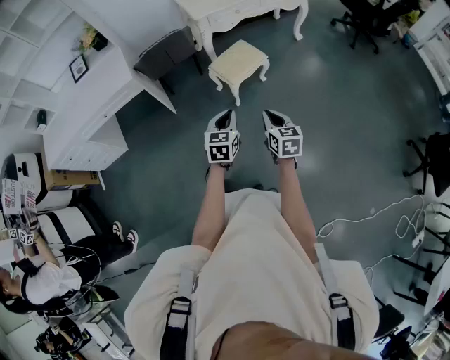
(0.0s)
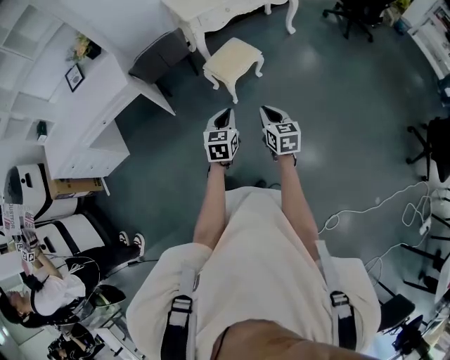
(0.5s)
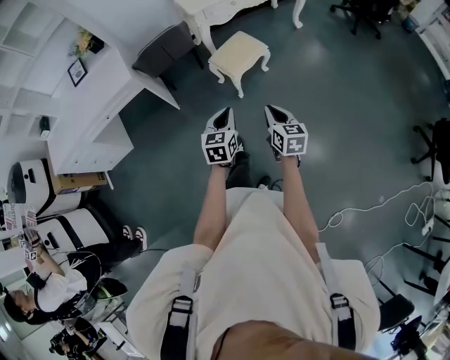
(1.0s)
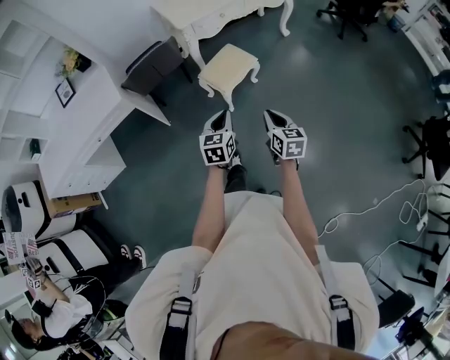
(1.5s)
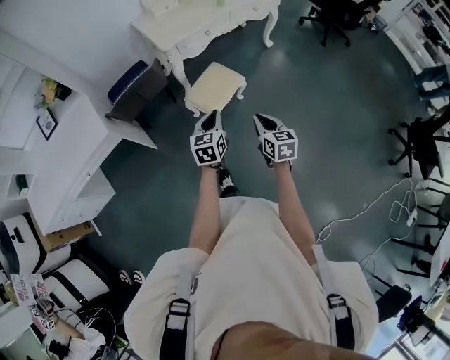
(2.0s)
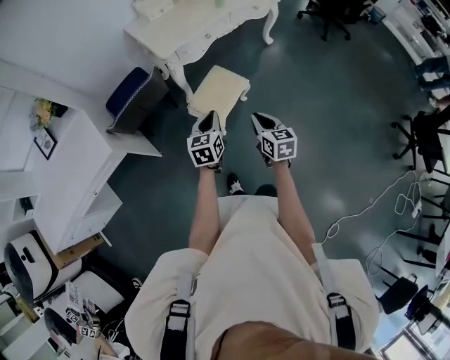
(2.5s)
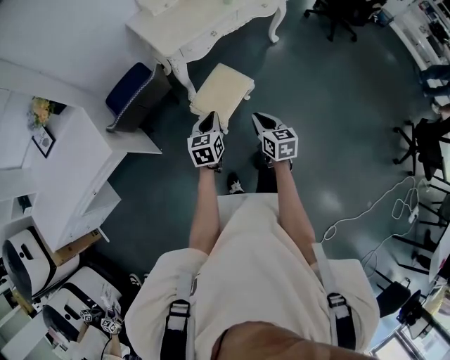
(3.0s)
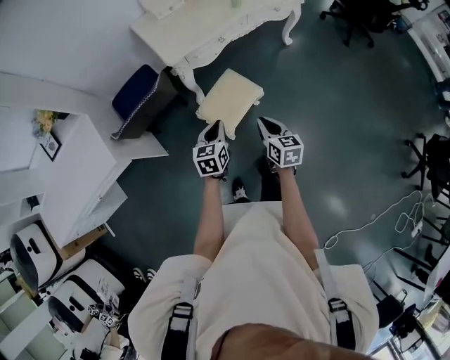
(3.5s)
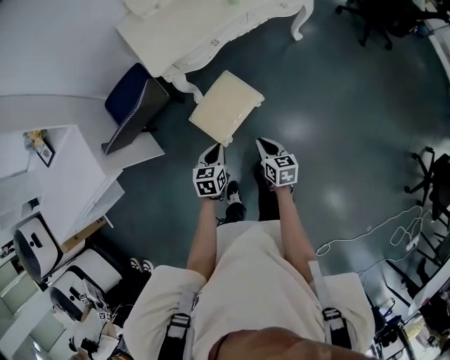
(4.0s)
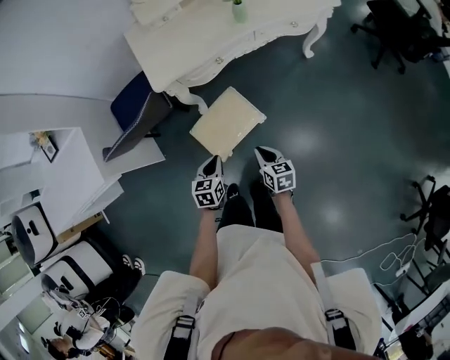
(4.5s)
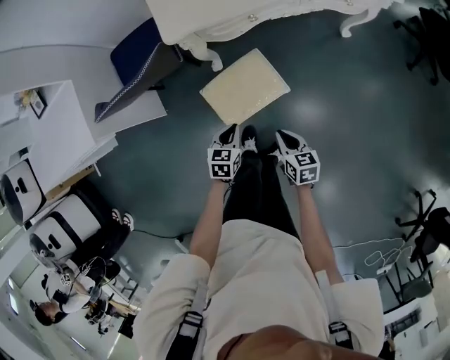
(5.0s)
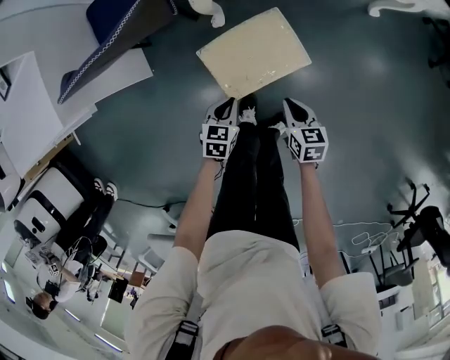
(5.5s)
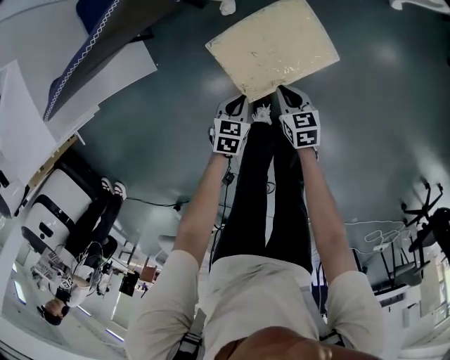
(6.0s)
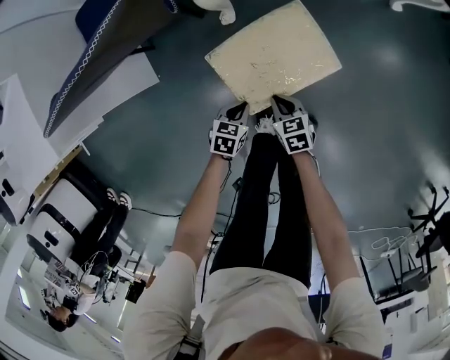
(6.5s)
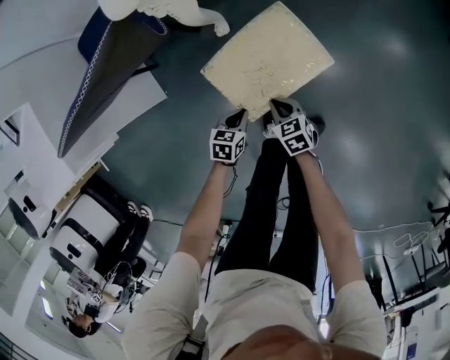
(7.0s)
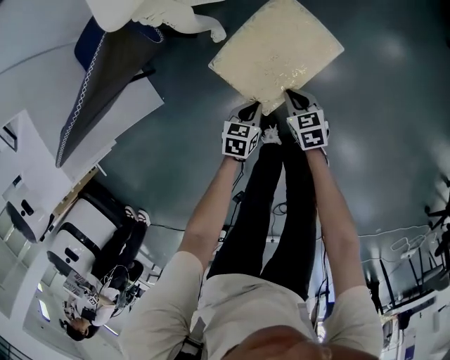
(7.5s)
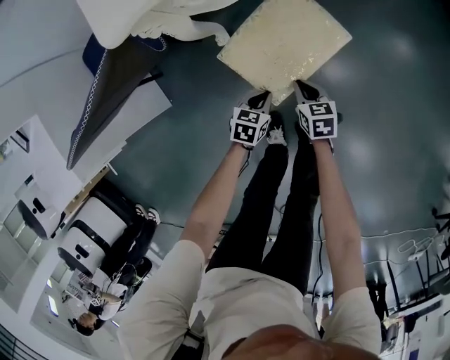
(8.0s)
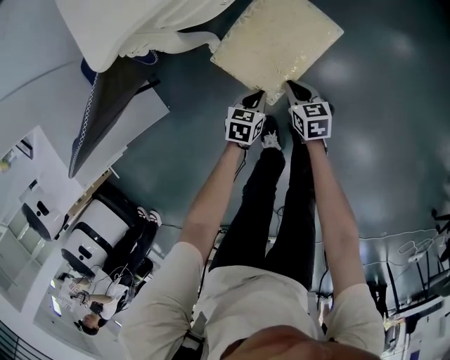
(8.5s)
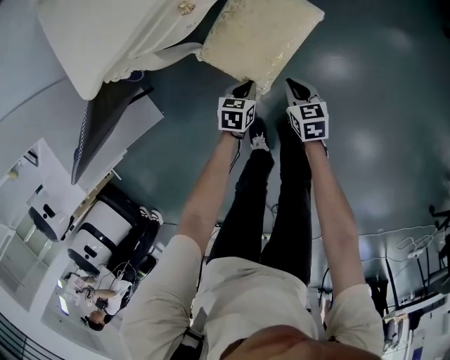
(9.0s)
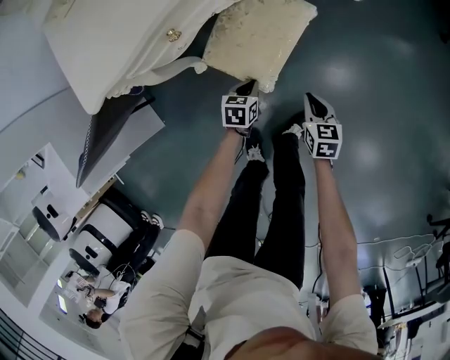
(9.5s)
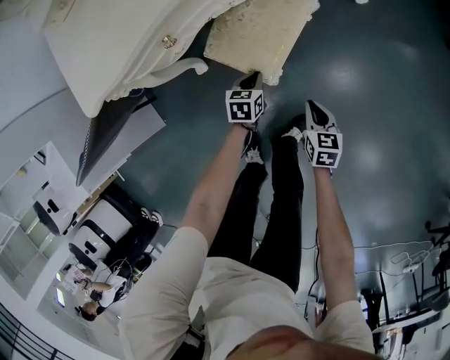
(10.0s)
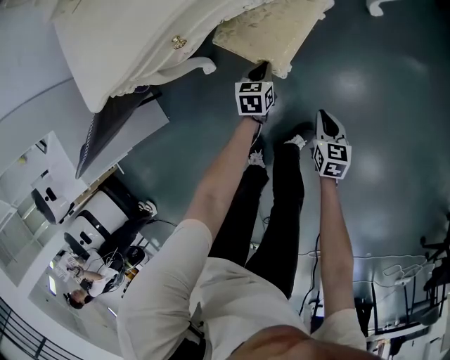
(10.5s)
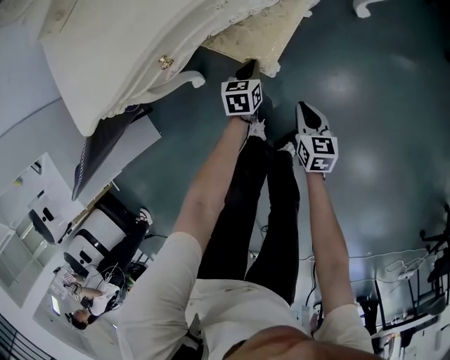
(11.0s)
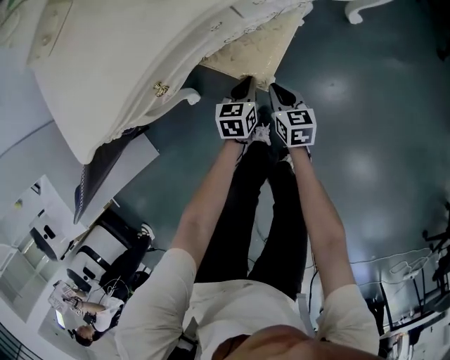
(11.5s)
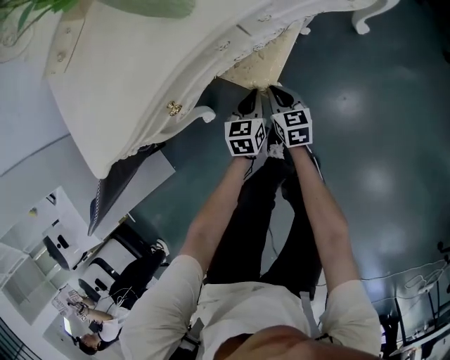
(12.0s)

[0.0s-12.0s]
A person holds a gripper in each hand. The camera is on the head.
0.0s to 2.0s: The grippers both shift forward by about 20 cm.
2.0s to 4.0s: The grippers both shift forward and downward by some 30 cm. The left gripper swivels some 20 degrees.
4.0s to 6.0s: Both grippers move downward, about 35 cm. The right gripper rotates some 30 degrees.
6.0s to 8.0s: The grippers both shift forward, to the right and downward by roughly 15 cm.
8.0s to 10.0s: The right gripper goes approximately 25 cm to the right; the left gripper travels forward and to the right by about 25 cm.
10.0s to 12.0s: The left gripper goes approximately 15 cm forward, while the right gripper heads forward and to the left, covering roughly 25 cm.

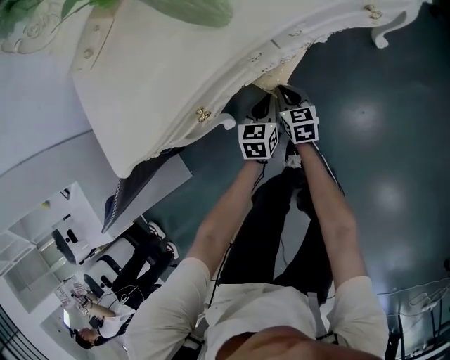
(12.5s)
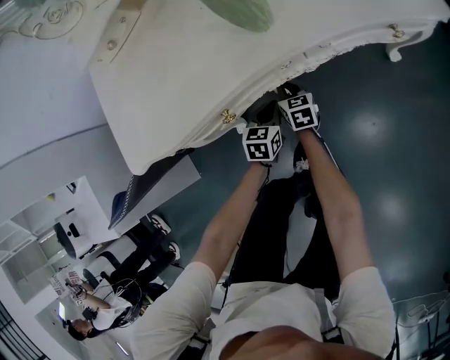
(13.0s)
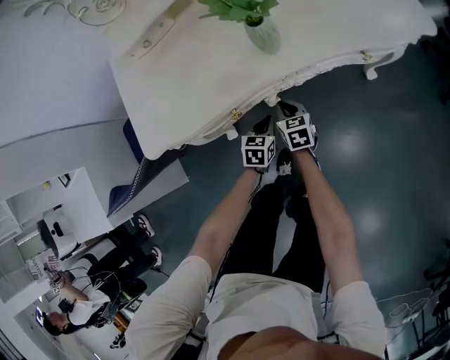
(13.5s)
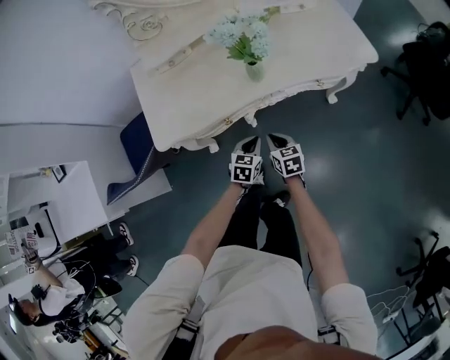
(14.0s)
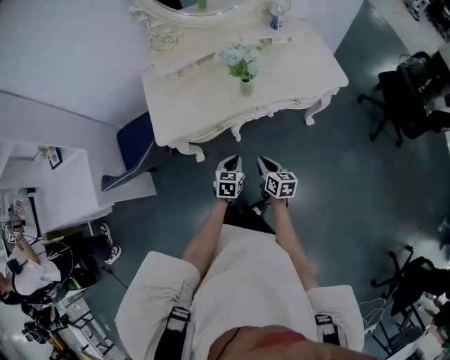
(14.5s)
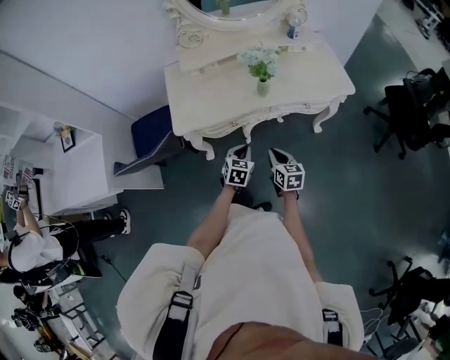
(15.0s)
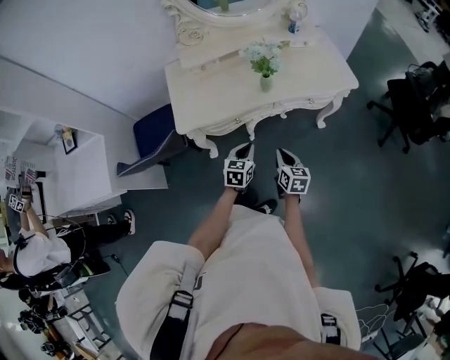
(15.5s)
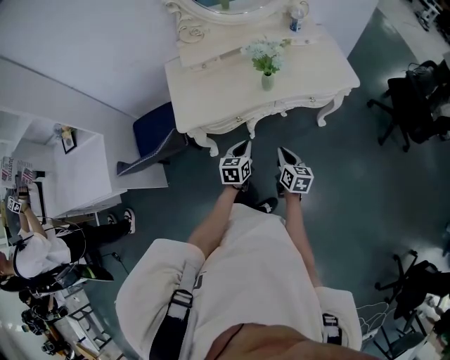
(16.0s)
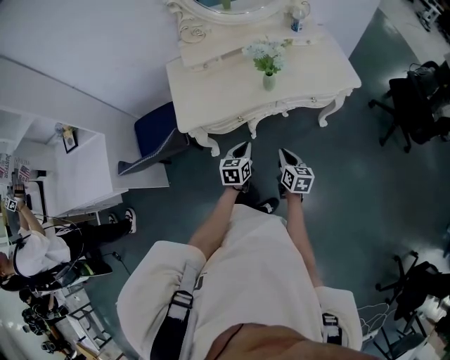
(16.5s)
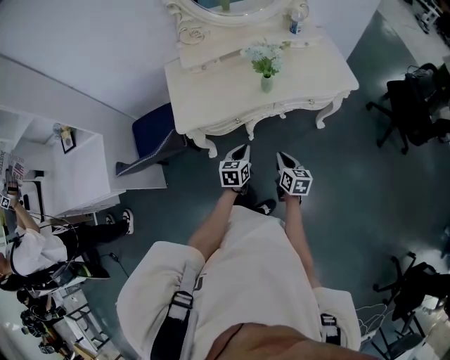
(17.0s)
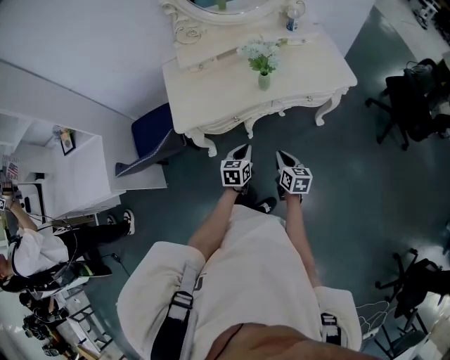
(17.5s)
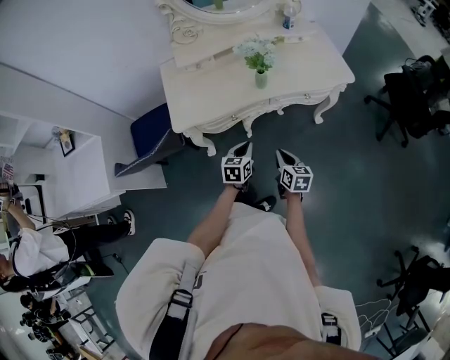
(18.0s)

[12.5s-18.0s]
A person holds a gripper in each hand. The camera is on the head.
12.5s to 14.5s: The grippers both shift upward and backward by some 40 cm.
14.5s to 16.0s: Both grippers move upward, roughly 5 cm.
16.0s to 18.0s: The grippers stay close to where they were, moving slightly.

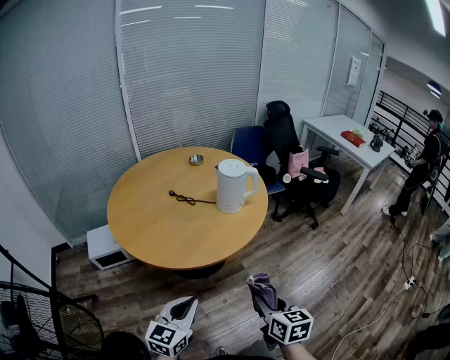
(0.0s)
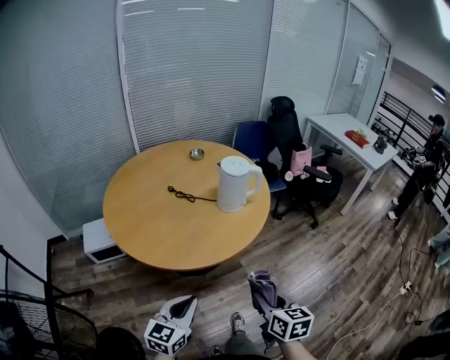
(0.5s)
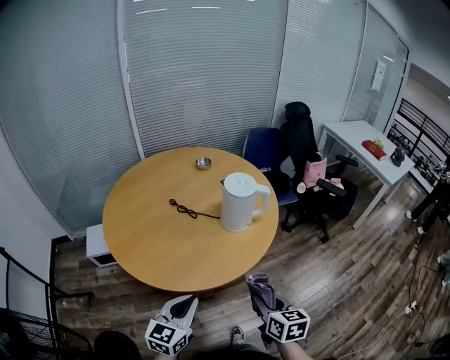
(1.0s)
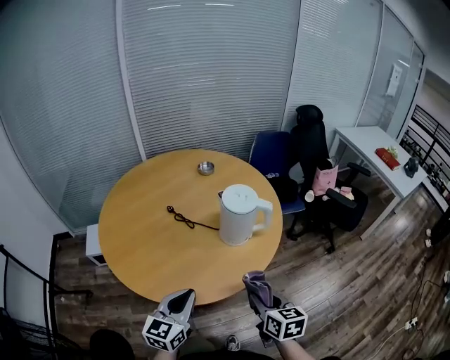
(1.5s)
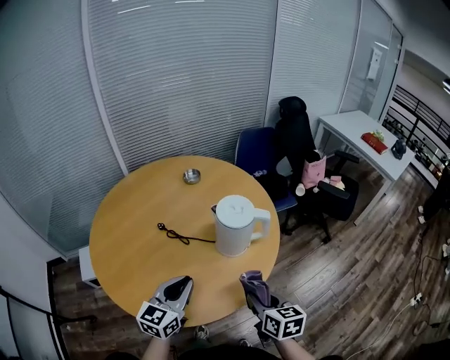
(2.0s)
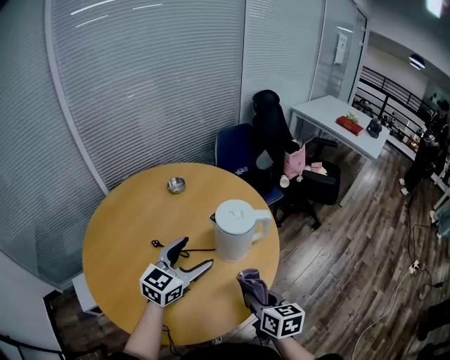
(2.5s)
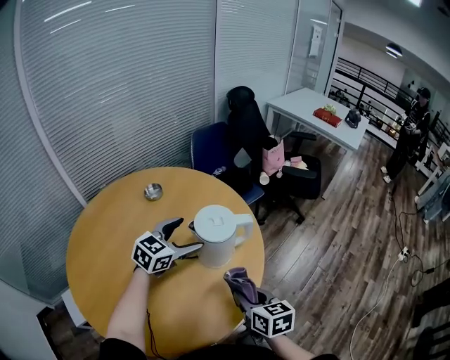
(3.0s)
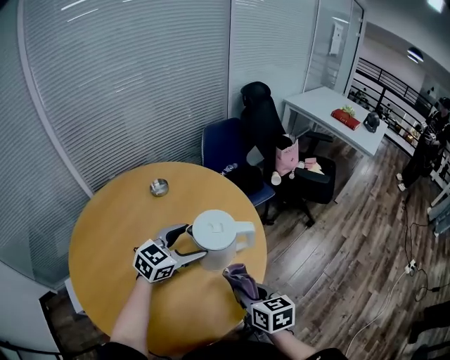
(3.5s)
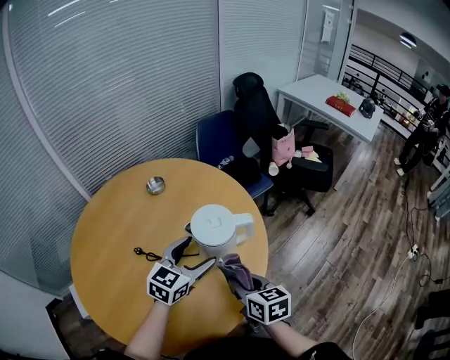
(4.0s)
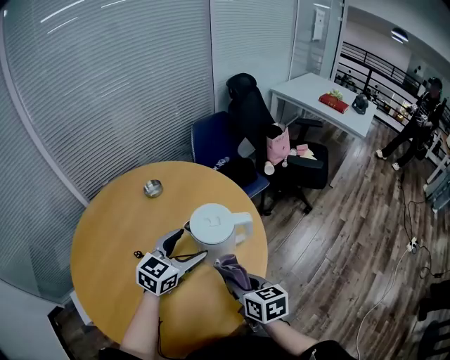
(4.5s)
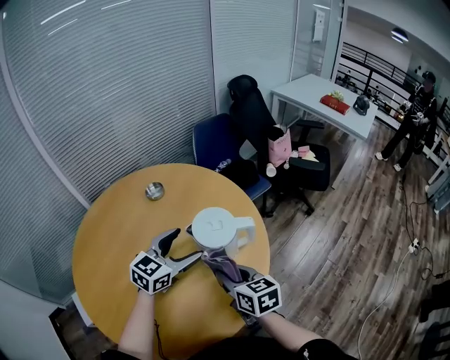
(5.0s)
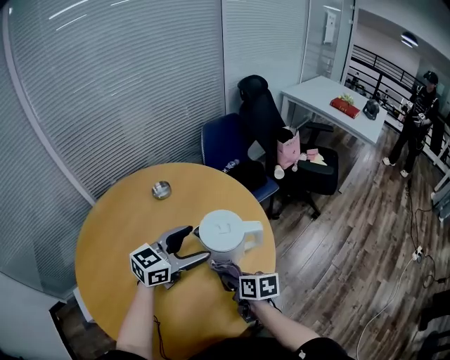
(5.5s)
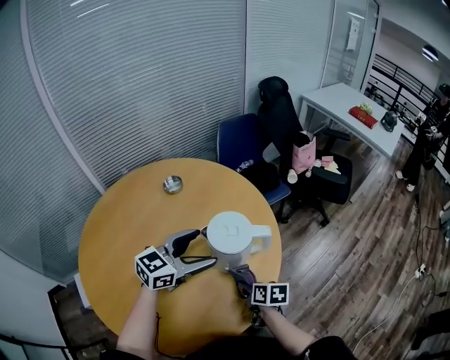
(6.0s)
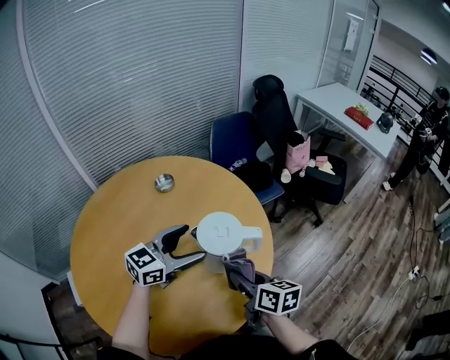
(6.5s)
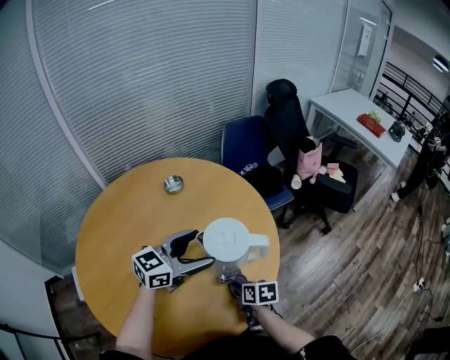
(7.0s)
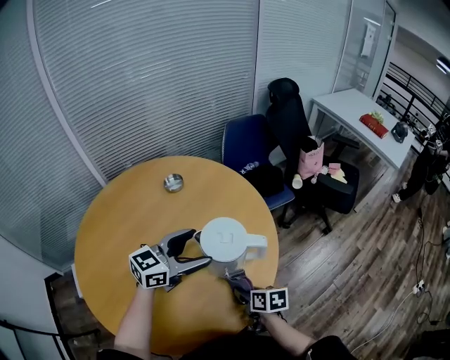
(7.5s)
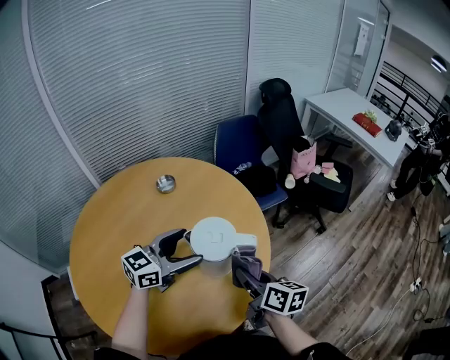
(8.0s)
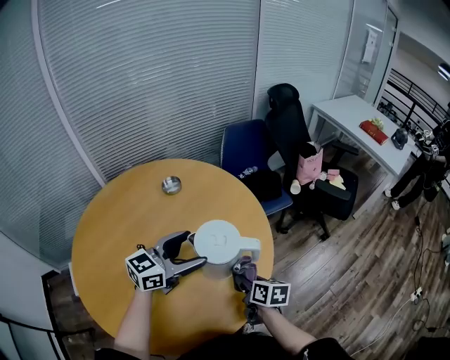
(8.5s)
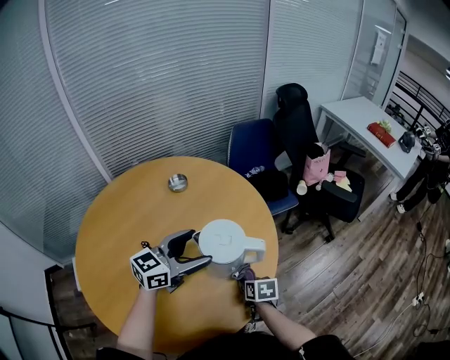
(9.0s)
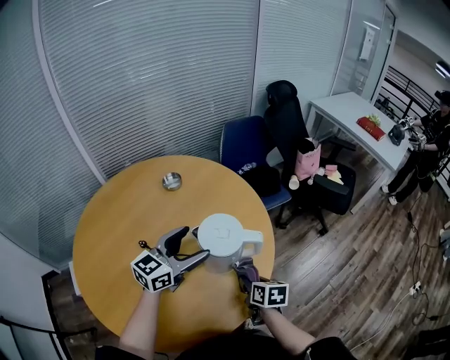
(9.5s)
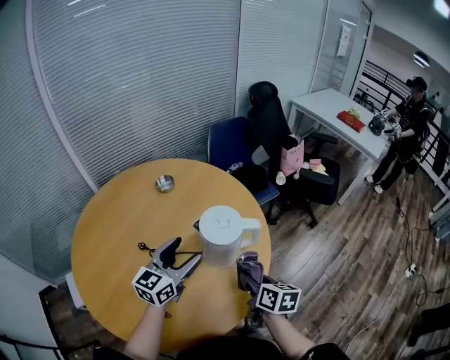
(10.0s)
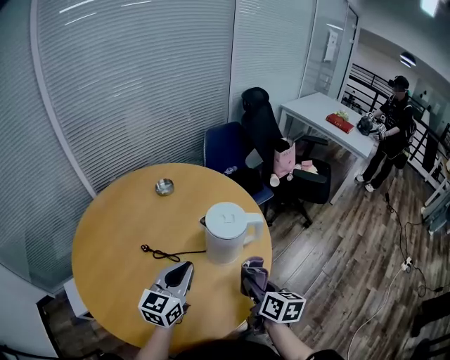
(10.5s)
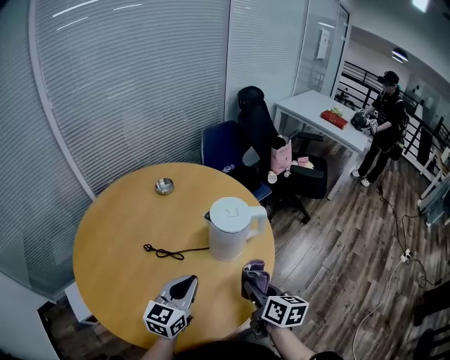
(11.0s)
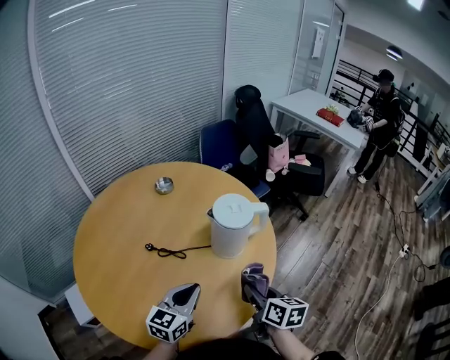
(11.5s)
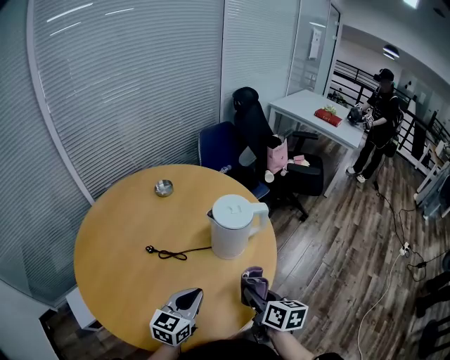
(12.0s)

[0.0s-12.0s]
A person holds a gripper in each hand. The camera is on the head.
0.0s to 2.0s: The grippers both shift forward by roughly 30 cm.
2.0s to 4.0s: The left gripper goes about 20 cm forward, swivels roughly 30 degrees, and opens its fingers; the right gripper moves forward and to the left, some 10 cm.
4.0s to 6.0s: The right gripper travels downward by approximately 15 cm, and rotates approximately 20 degrees.
6.0s to 8.0s: The right gripper moves up and down over some 15 cm, changing direction 2 times, and changes its angle by approximately 30 degrees.
8.0s to 10.0s: The right gripper is displaced backward by about 5 cm, and travels downward and back again, roughly 20 cm each way; the left gripper moves approximately 5 cm.
10.0s to 12.0s: The left gripper travels backward and downward by some 20 cm, and closes. The right gripper travels backward by about 10 cm.
